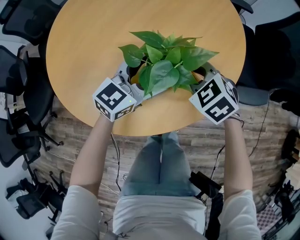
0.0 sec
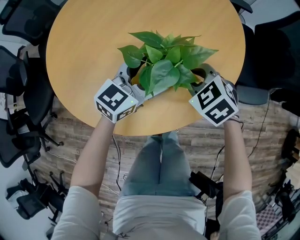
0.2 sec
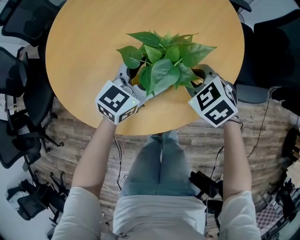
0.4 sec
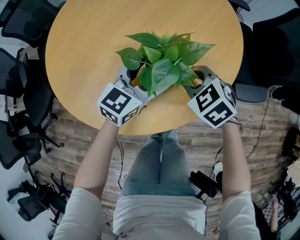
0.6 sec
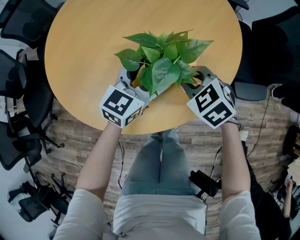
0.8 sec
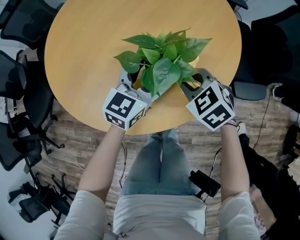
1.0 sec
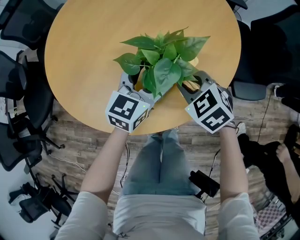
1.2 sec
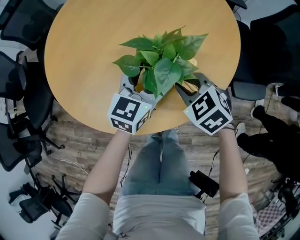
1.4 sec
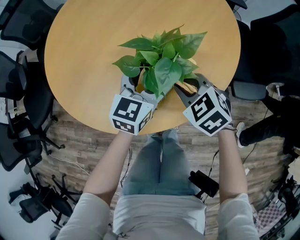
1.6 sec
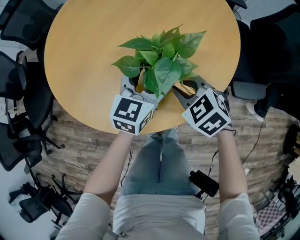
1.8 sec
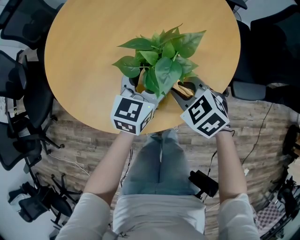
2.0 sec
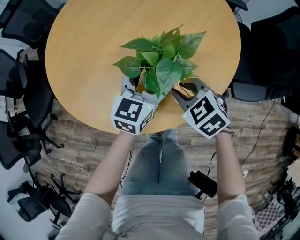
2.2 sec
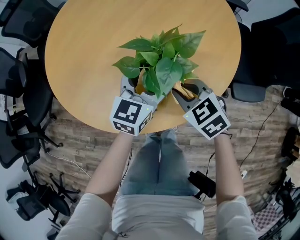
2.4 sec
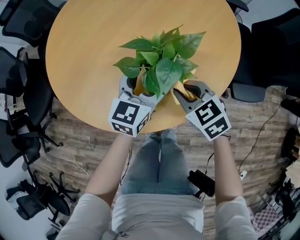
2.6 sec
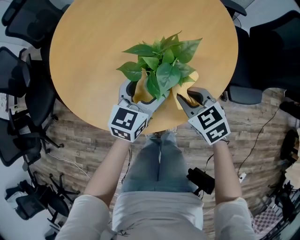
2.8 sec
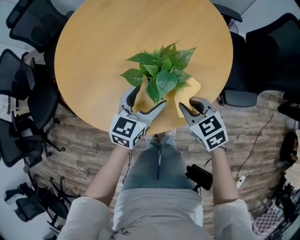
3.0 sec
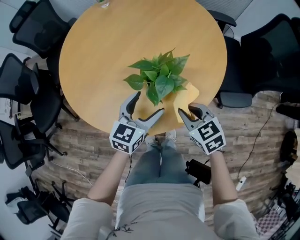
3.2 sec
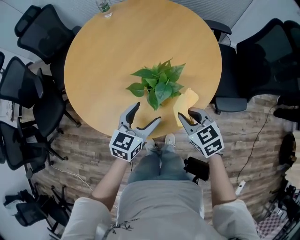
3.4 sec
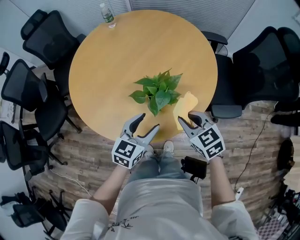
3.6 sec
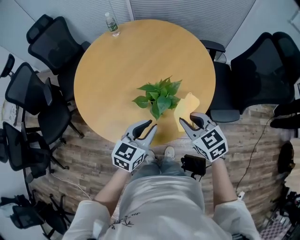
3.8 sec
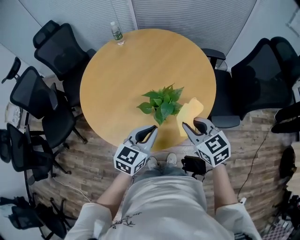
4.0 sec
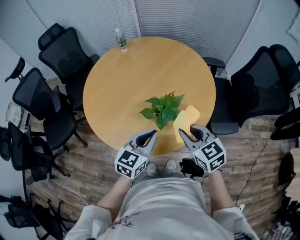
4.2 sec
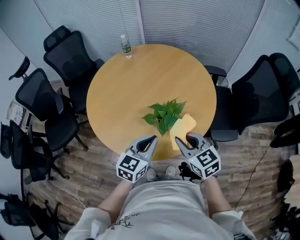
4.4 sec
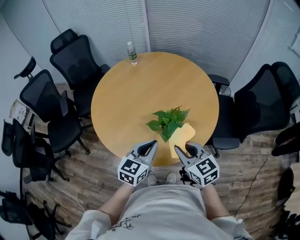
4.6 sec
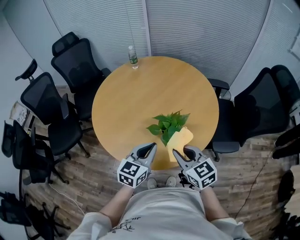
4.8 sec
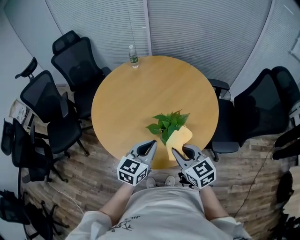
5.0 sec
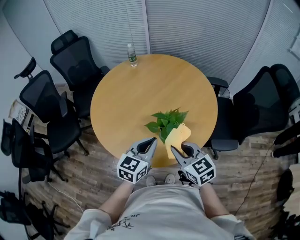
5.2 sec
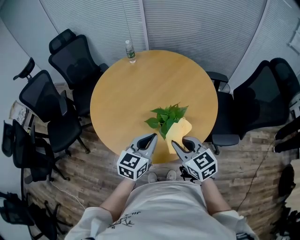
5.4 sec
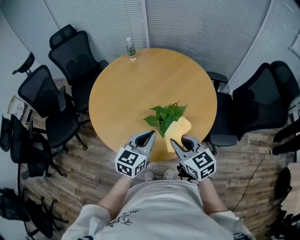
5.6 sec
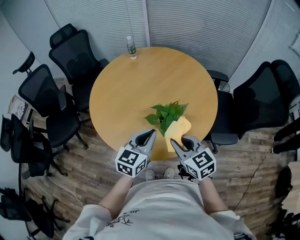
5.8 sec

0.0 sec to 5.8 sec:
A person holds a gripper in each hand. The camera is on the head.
0.0 sec to 1.4 sec: There are only small adjustments of the grippers.
1.4 sec to 2.8 sec: There are only small adjustments of the grippers.
2.8 sec to 4.4 sec: The right gripper is displaced upward by some 20 cm. The left gripper shifts about 20 cm upward and backward, and closes its fingers.
4.4 sec to 5.8 sec: The grippers stay close to where they were, moving slightly.

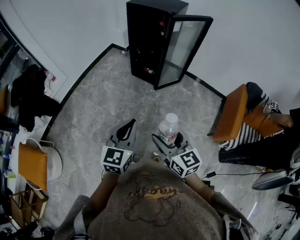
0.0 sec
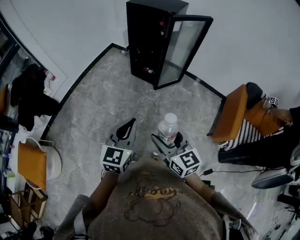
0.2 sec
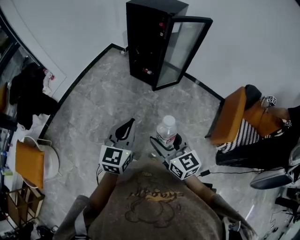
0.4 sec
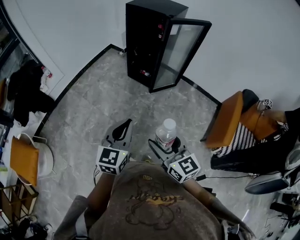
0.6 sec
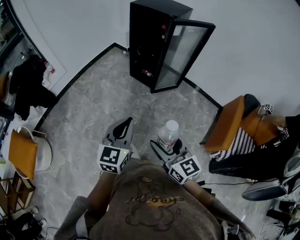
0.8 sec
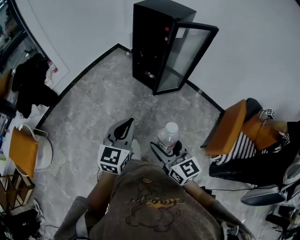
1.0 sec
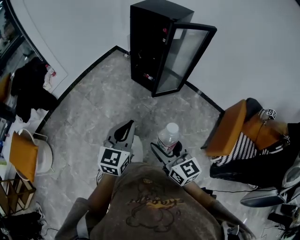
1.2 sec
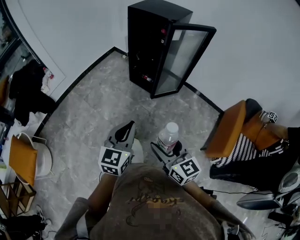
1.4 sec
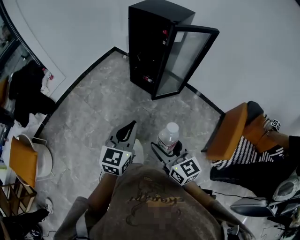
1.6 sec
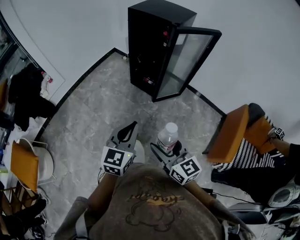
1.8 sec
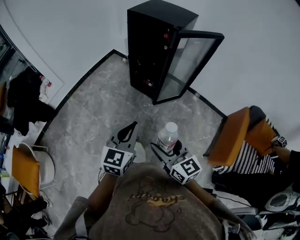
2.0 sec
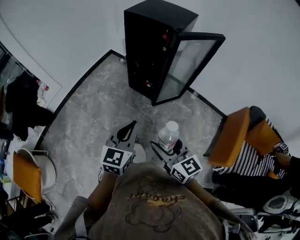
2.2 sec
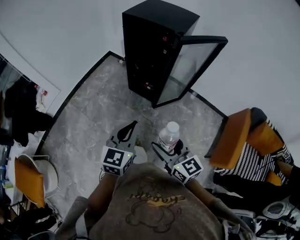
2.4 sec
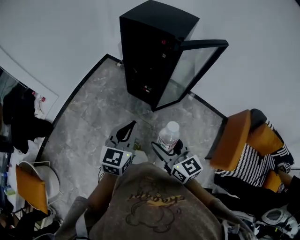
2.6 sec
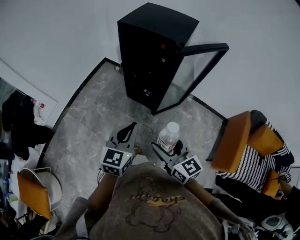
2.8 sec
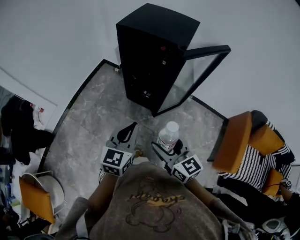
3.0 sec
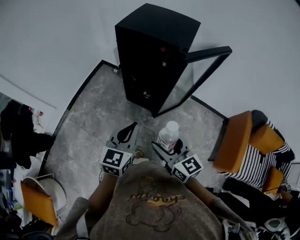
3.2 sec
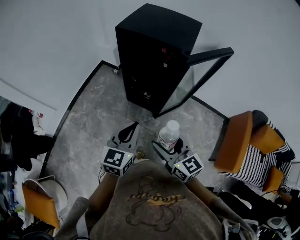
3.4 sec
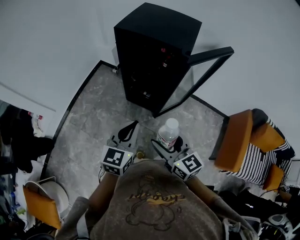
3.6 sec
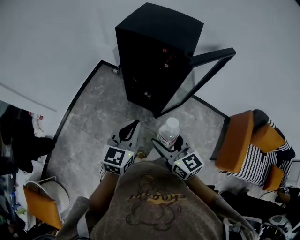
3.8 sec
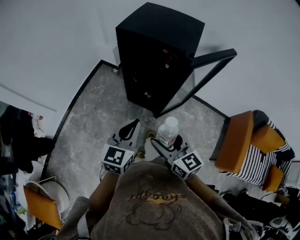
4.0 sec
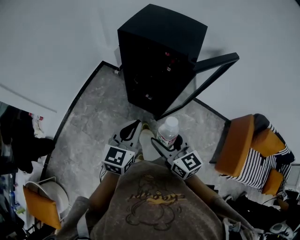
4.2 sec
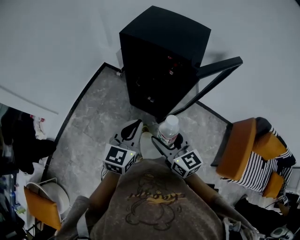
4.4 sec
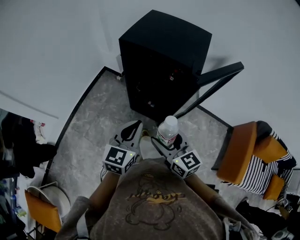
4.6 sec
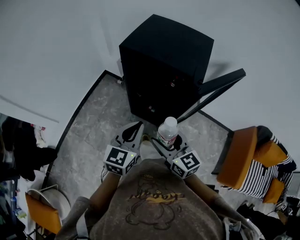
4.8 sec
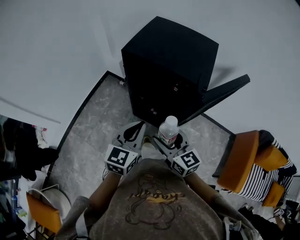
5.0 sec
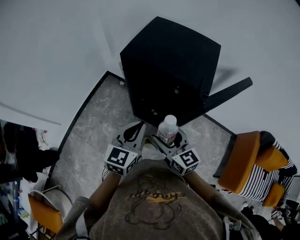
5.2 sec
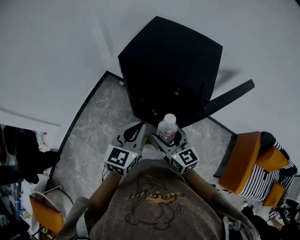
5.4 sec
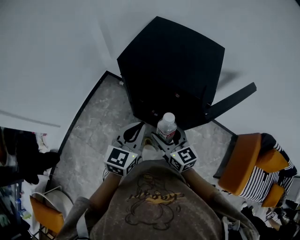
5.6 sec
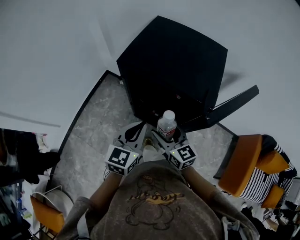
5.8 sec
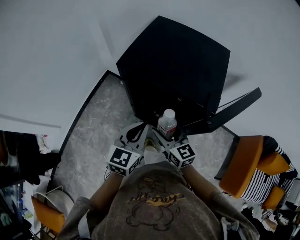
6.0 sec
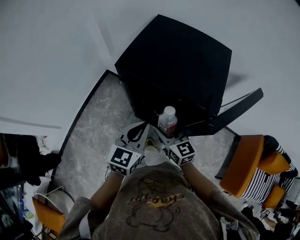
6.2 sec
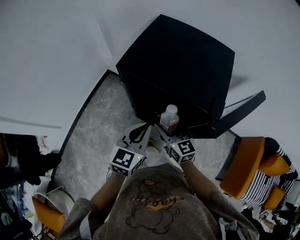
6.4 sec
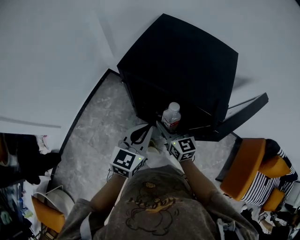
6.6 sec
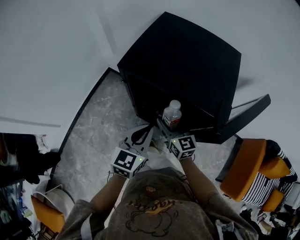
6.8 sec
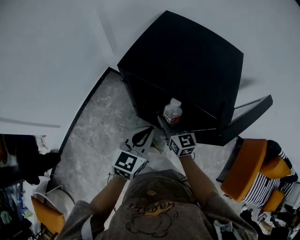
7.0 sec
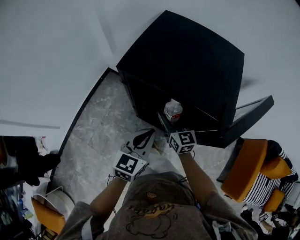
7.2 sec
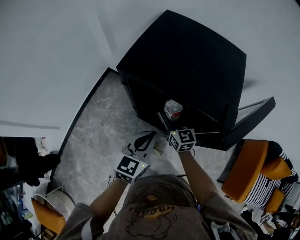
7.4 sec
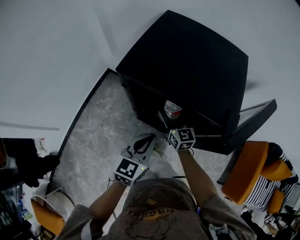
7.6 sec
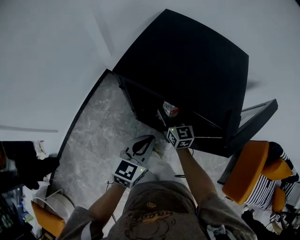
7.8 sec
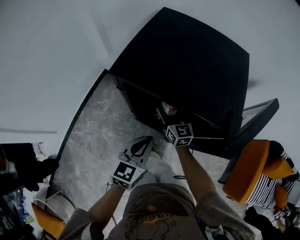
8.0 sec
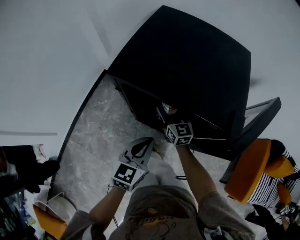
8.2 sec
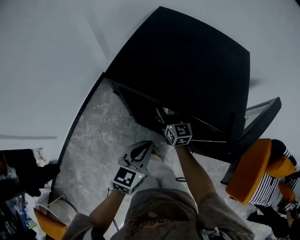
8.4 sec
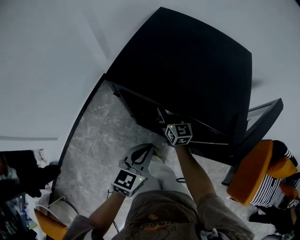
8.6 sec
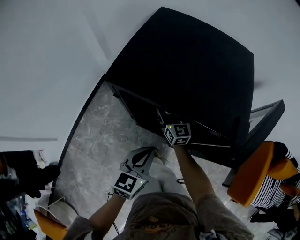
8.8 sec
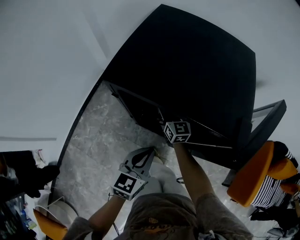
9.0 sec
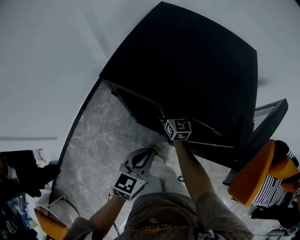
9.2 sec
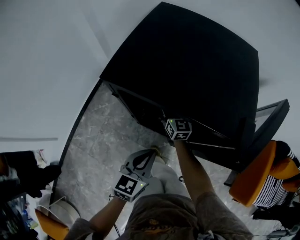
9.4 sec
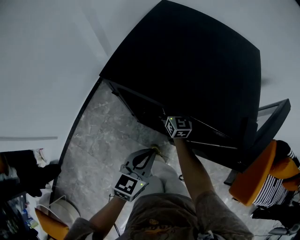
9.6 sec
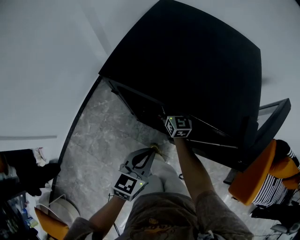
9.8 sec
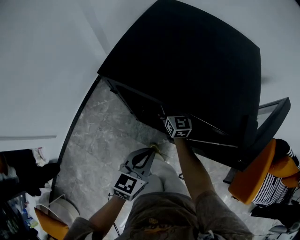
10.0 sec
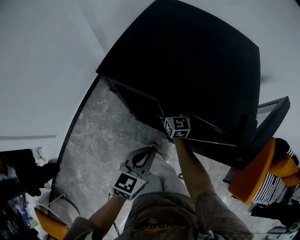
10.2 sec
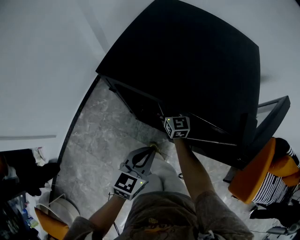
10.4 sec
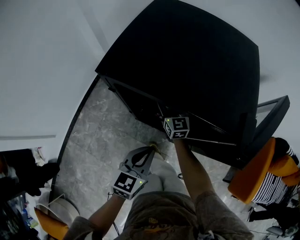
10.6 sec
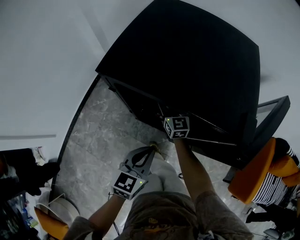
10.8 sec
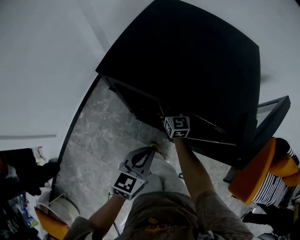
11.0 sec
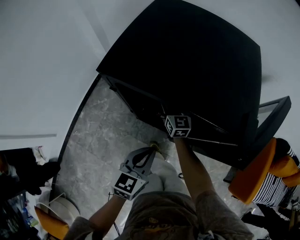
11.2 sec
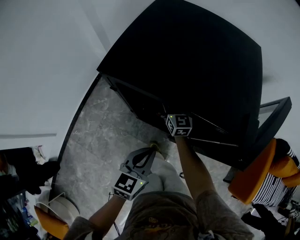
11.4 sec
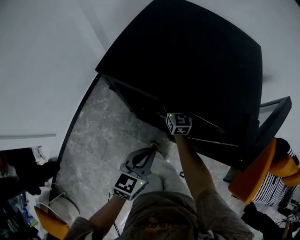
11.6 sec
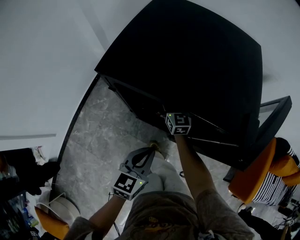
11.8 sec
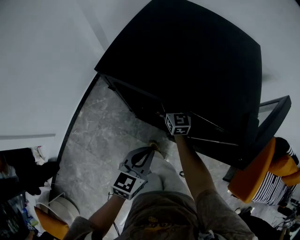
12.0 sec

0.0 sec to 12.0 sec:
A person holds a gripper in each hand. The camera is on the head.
0.0 sec to 1.6 sec: The left gripper heads forward and to the right, covering some 10 cm. Meanwhile the right gripper shifts about 10 cm to the right and forward.
1.6 sec to 3.0 sec: The two grippers go some 30 cm forward.
3.0 sec to 4.4 sec: The grippers both shift forward by approximately 10 cm.
4.4 sec to 6.0 sec: The two grippers go about 20 cm forward.
6.0 sec to 7.6 sec: The right gripper moves forward and downward, approximately 15 cm, while the left gripper heads downward, covering about 5 cm.
7.6 sec to 9.0 sec: The right gripper heads forward and downward, covering approximately 10 cm, while the left gripper is displaced downward by some 5 cm.
9.0 sec to 12.0 sec: The grippers make only small movements.

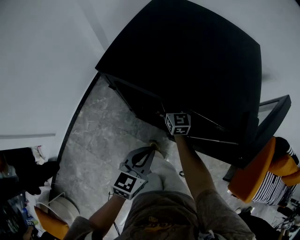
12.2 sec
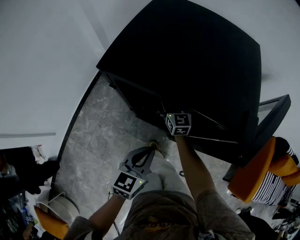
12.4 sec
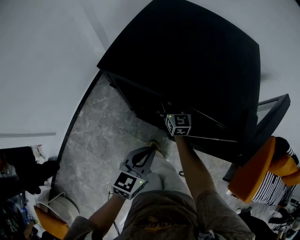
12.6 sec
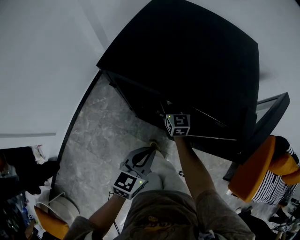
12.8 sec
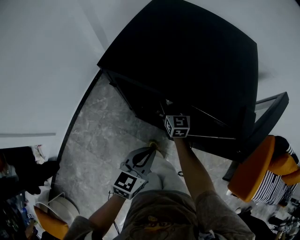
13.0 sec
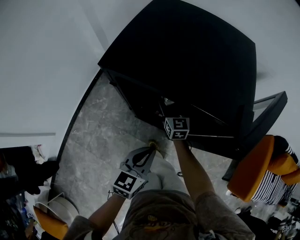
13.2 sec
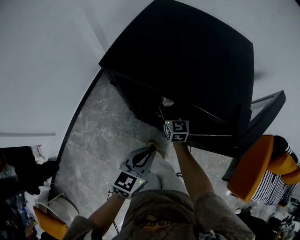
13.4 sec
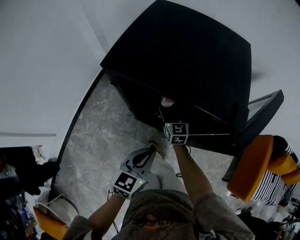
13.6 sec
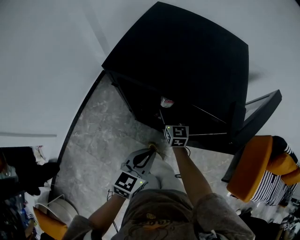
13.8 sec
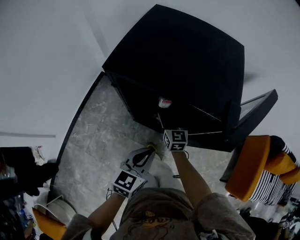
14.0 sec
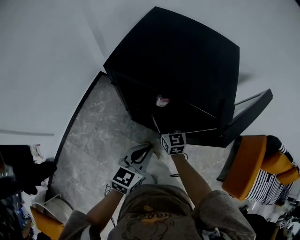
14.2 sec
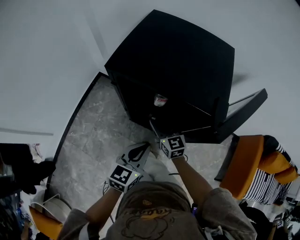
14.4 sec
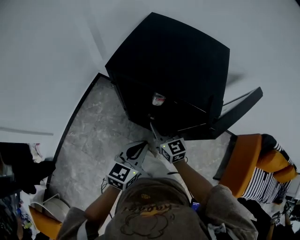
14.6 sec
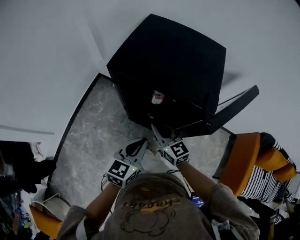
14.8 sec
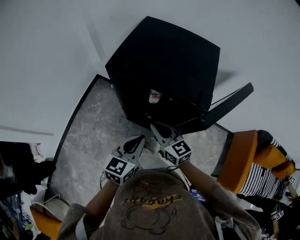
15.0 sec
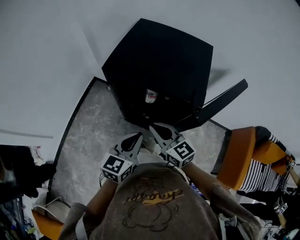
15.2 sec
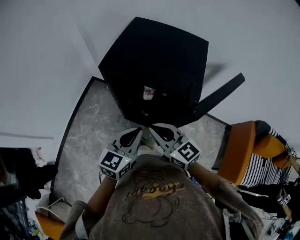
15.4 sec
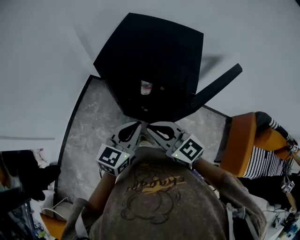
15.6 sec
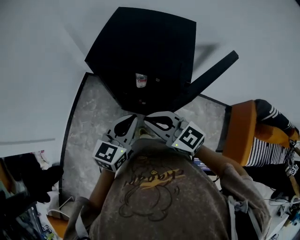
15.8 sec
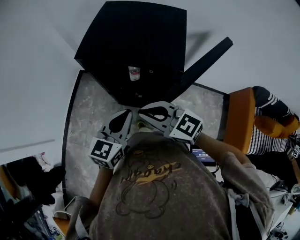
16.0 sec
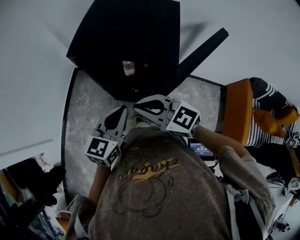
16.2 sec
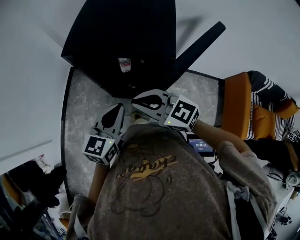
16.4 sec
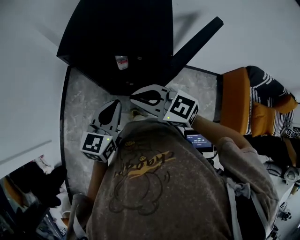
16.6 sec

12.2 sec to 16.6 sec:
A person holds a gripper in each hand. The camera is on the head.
12.2 sec to 13.6 sec: The right gripper is displaced backward by some 5 cm.
13.6 sec to 15.2 sec: The left gripper heads upward, covering approximately 10 cm. The right gripper moves upward and backward, about 30 cm, rotates some 30 degrees, and closes its fingers.
15.2 sec to 16.6 sec: The right gripper travels upward by some 5 cm.

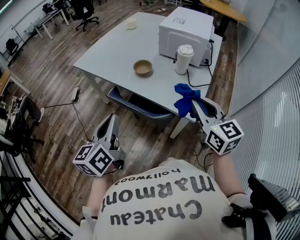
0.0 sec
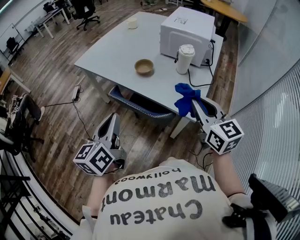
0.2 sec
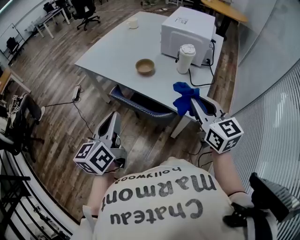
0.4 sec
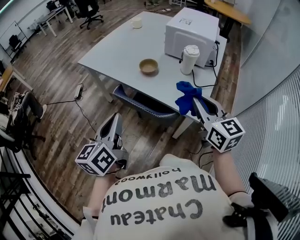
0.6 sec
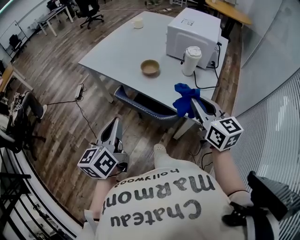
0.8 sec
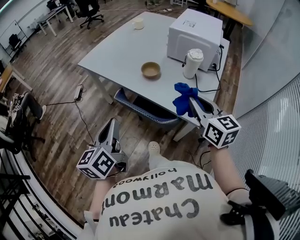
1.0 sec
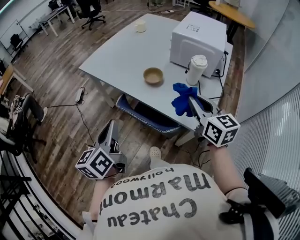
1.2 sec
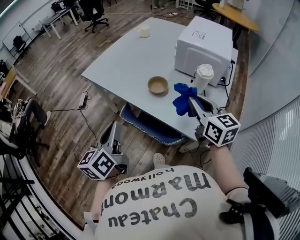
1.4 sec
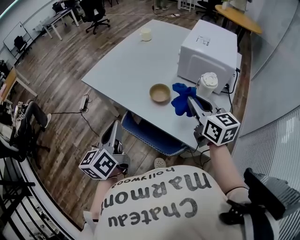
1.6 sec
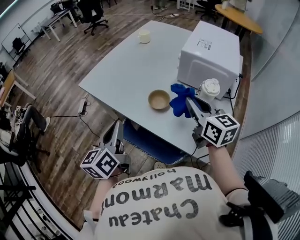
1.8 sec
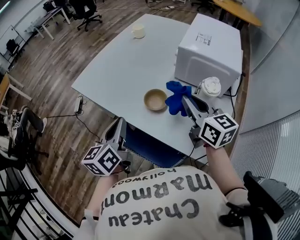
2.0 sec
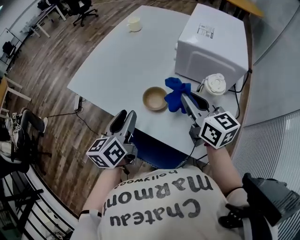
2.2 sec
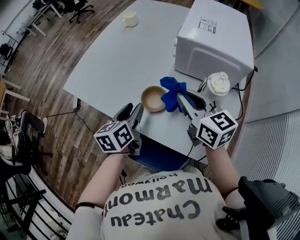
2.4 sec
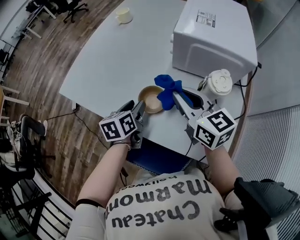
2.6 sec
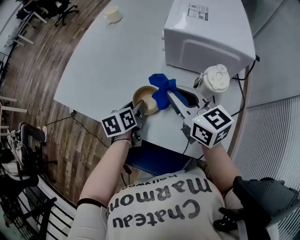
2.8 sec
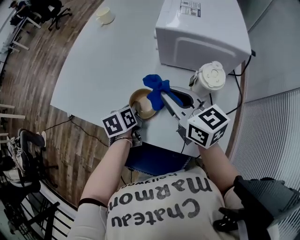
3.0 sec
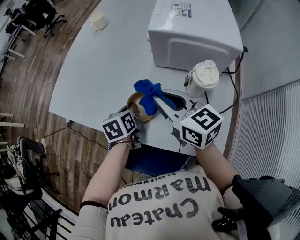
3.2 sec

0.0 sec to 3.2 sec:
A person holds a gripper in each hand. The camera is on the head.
0.0 sec to 1.6 sec: Both grippers travel together forward, approximately 20 cm.
1.6 sec to 3.2 sec: The right gripper moves forward and downward, about 15 cm. Meanwhile the left gripper is displaced downward, forward and to the right by approximately 35 cm, tilts its fingers approximately 40 degrees downward, and opens, then closes once more.
